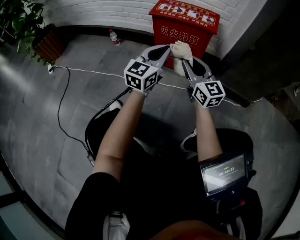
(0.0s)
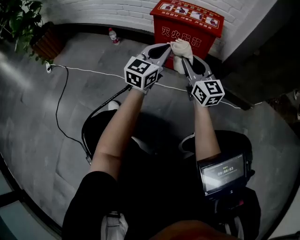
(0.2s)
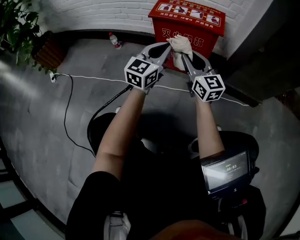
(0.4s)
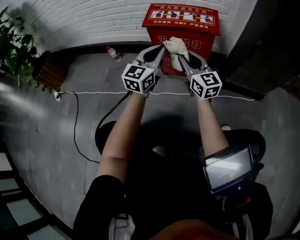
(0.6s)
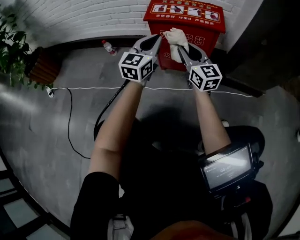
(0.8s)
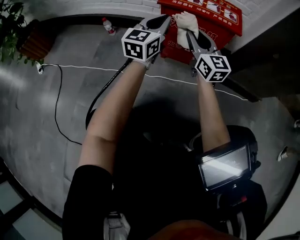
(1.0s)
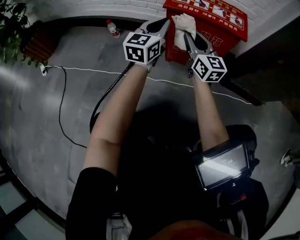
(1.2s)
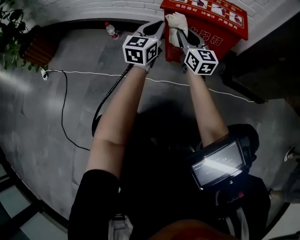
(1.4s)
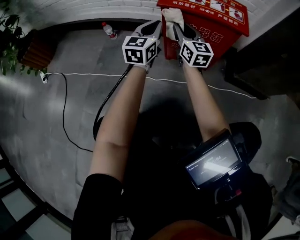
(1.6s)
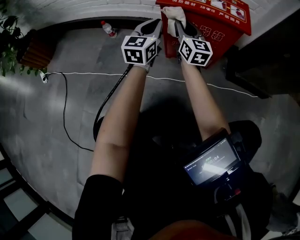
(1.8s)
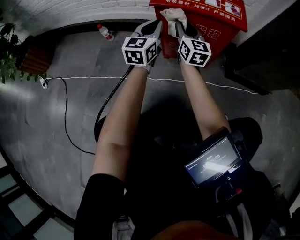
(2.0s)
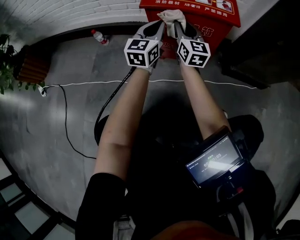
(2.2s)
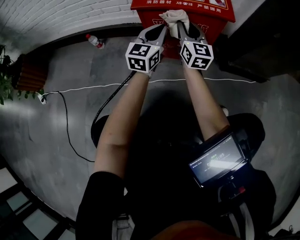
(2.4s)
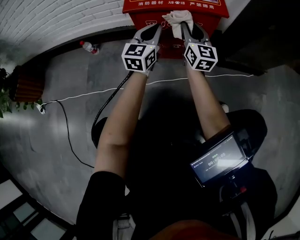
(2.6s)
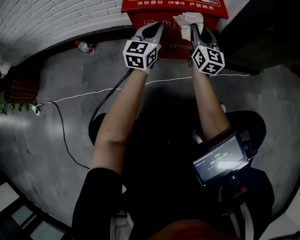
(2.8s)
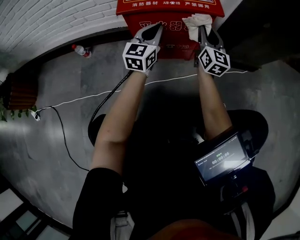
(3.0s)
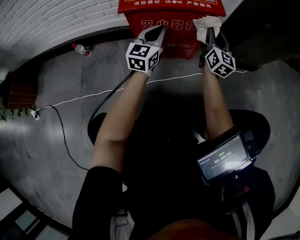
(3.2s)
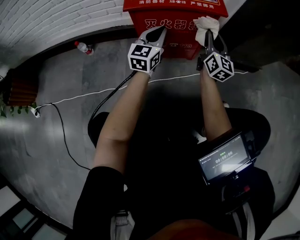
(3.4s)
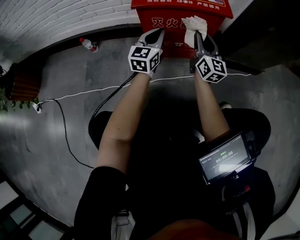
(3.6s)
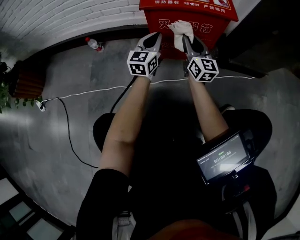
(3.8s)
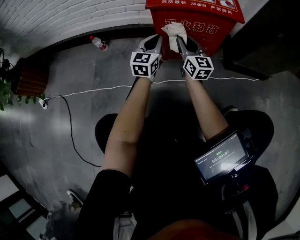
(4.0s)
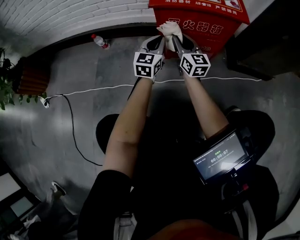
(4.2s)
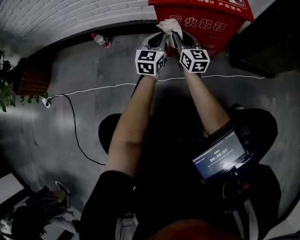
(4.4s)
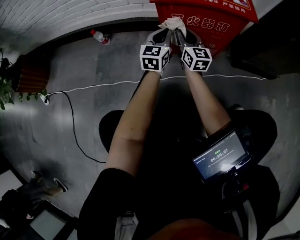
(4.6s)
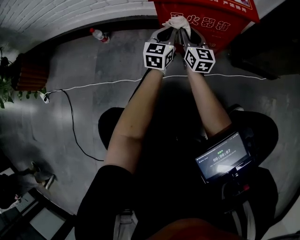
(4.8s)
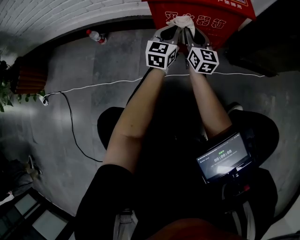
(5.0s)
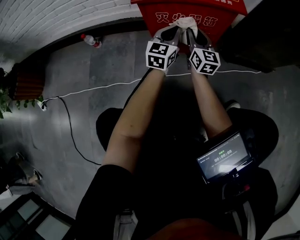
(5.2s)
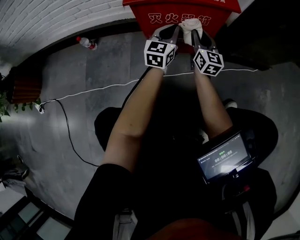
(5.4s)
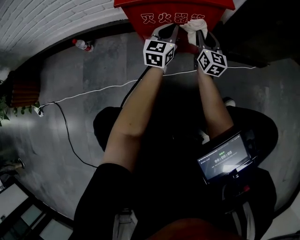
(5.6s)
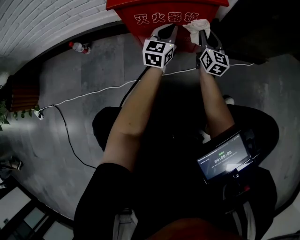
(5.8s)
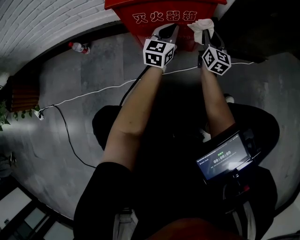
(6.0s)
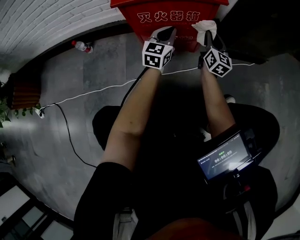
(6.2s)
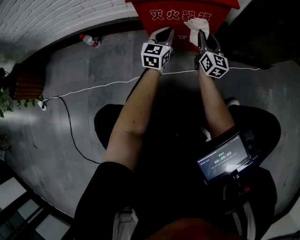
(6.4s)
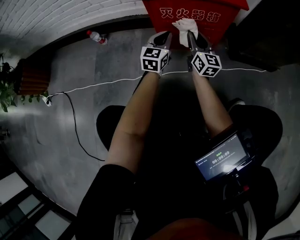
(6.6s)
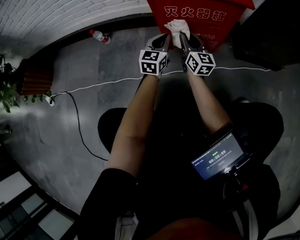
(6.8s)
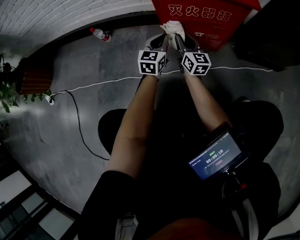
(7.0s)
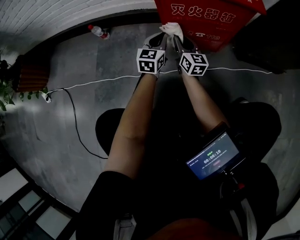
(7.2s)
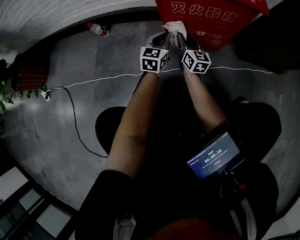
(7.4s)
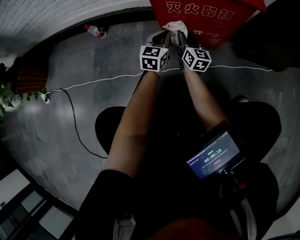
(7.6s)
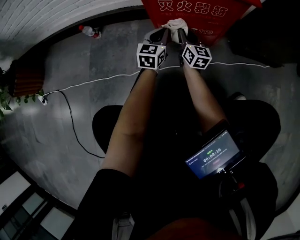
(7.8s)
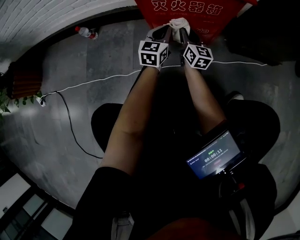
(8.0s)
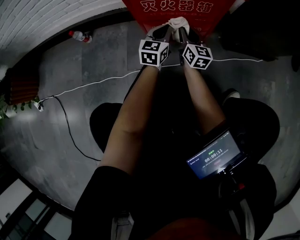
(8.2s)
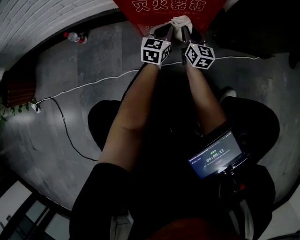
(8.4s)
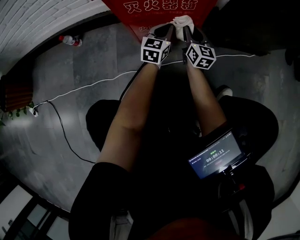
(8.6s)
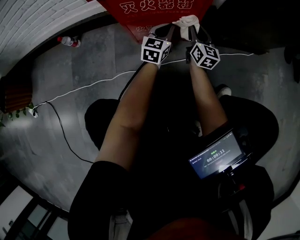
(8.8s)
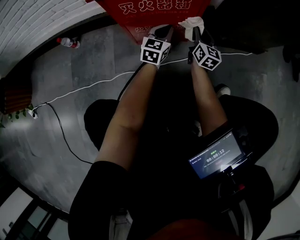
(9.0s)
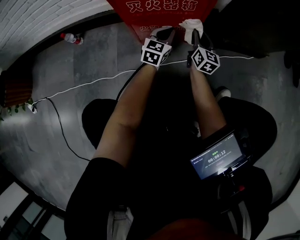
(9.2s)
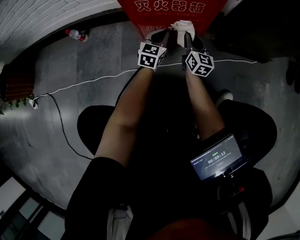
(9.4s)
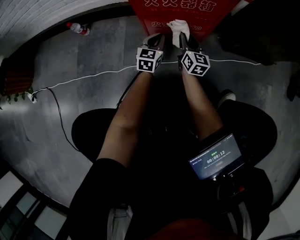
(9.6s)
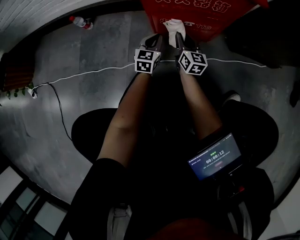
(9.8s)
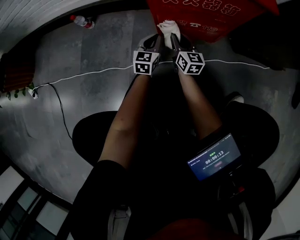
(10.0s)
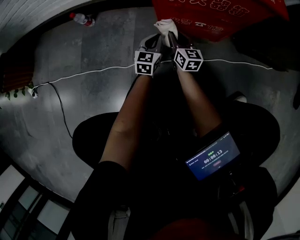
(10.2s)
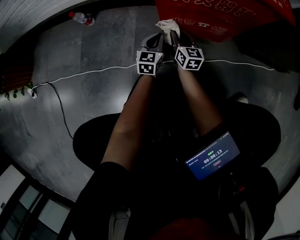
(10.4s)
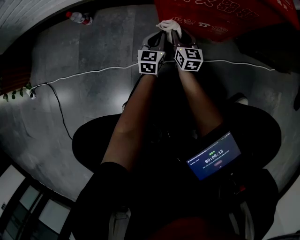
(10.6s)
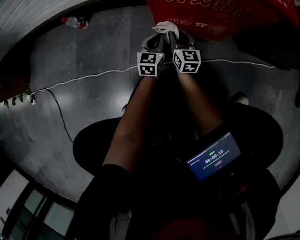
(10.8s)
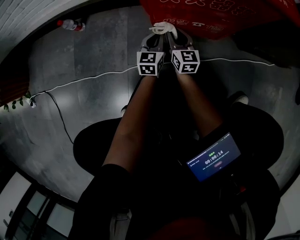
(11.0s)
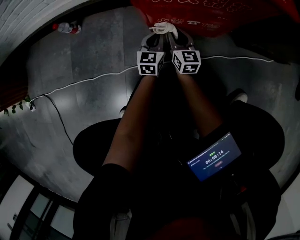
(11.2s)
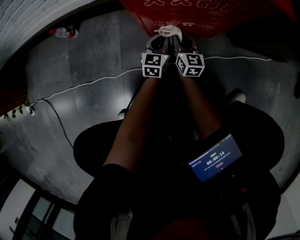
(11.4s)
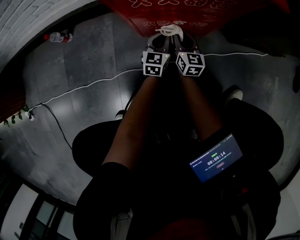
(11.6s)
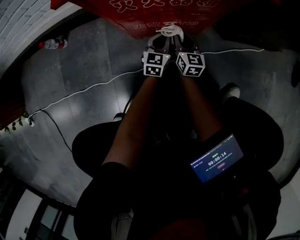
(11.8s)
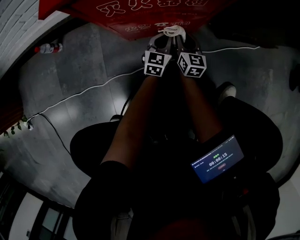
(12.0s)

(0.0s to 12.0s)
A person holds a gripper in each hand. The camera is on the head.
0.0s - 1.6s: The left gripper travels forward, to the left and downward by approximately 30 cm; the right gripper heads forward and to the left, covering about 30 cm.
1.6s - 3.0s: The right gripper shifts by about 25 cm, and rotates roughly 30 degrees, while the left gripper changes place by approximately 15 cm, and turns by approximately 20 degrees.
3.0s - 4.4s: The left gripper goes about 15 cm to the left and downward; the right gripper is displaced to the left and downward by approximately 25 cm, and swivels some 20 degrees.
4.4s - 6.0s: The right gripper shifts approximately 25 cm to the right, and rotates approximately 30 degrees; the left gripper travels to the right by approximately 15 cm.
6.0s - 7.6s: The left gripper shifts some 20 cm to the left and downward. The right gripper travels to the left by some 25 cm, and rotates some 20 degrees.
7.6s - 9.0s: Both grippers travel together to the right, roughly 20 cm.
9.0s - 10.4s: The two grippers go approximately 25 cm to the left and downward. The right gripper changes its angle by some 20 degrees.
10.4s - 12.0s: The grippers both shift to the right by approximately 20 cm.

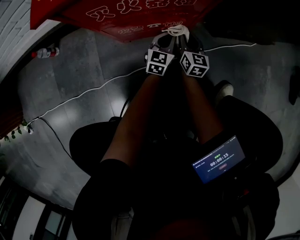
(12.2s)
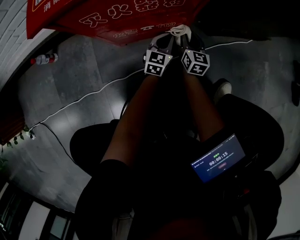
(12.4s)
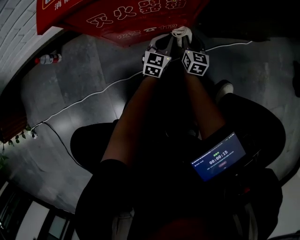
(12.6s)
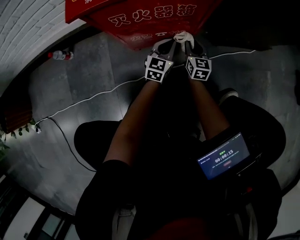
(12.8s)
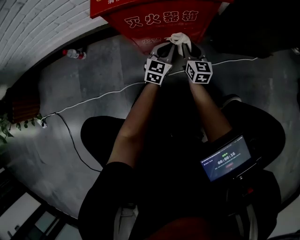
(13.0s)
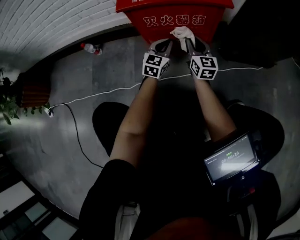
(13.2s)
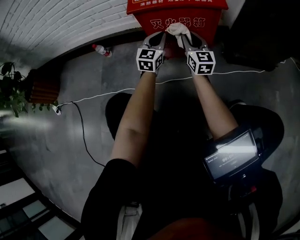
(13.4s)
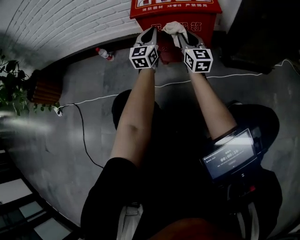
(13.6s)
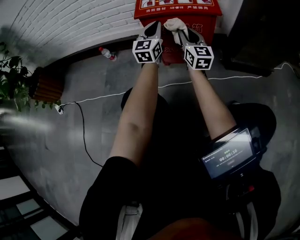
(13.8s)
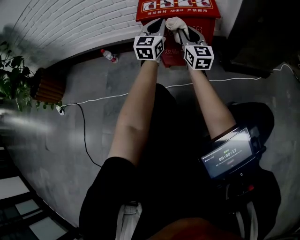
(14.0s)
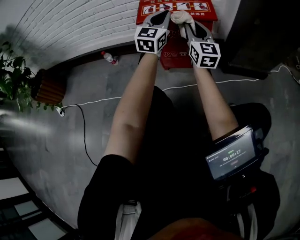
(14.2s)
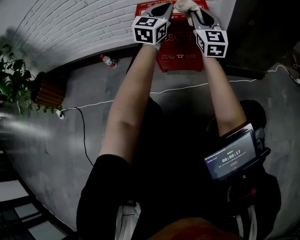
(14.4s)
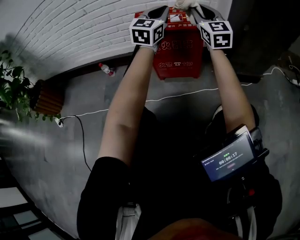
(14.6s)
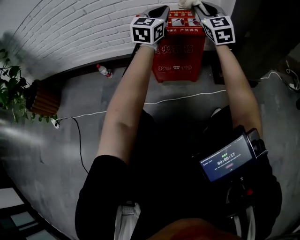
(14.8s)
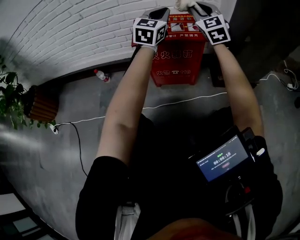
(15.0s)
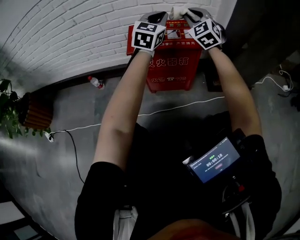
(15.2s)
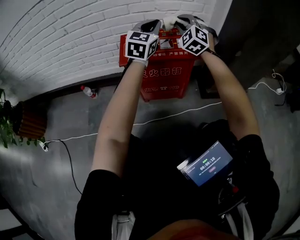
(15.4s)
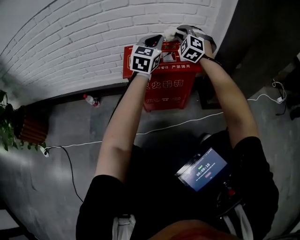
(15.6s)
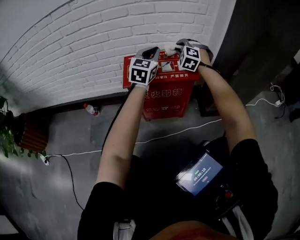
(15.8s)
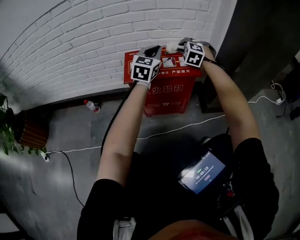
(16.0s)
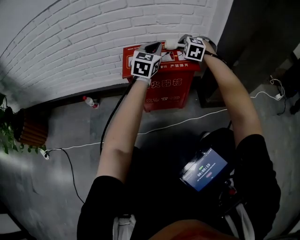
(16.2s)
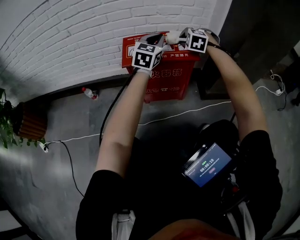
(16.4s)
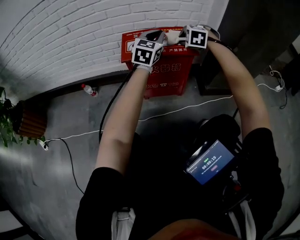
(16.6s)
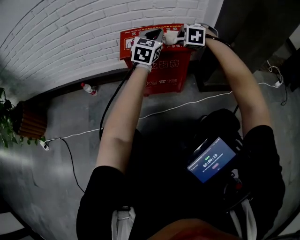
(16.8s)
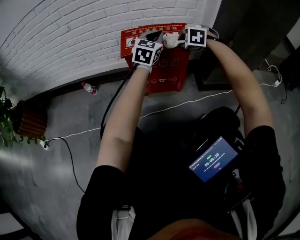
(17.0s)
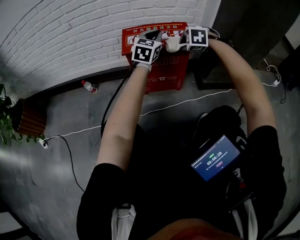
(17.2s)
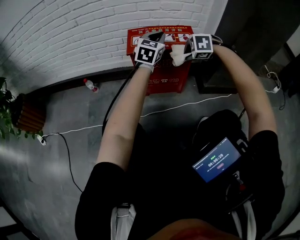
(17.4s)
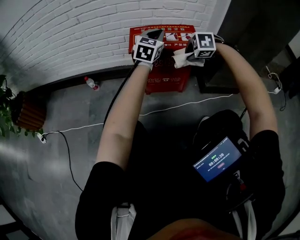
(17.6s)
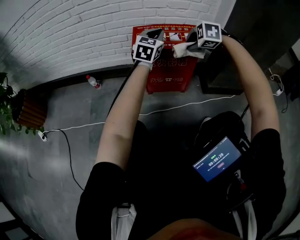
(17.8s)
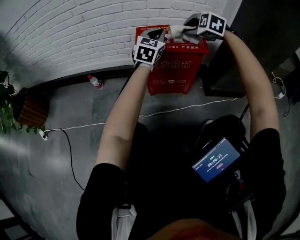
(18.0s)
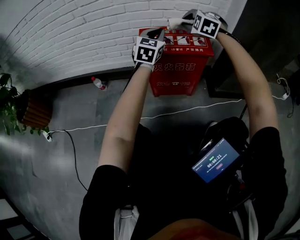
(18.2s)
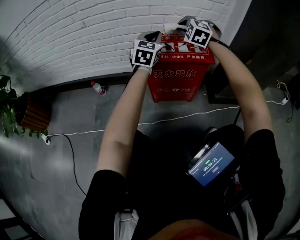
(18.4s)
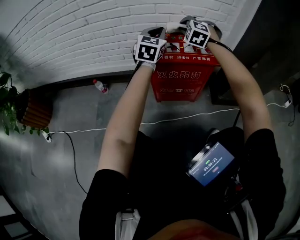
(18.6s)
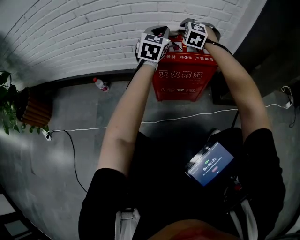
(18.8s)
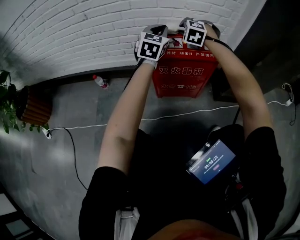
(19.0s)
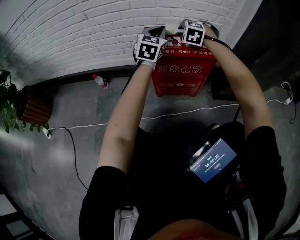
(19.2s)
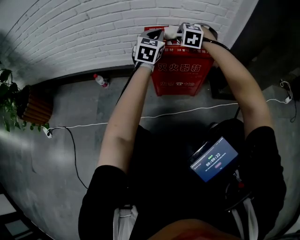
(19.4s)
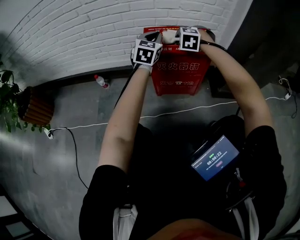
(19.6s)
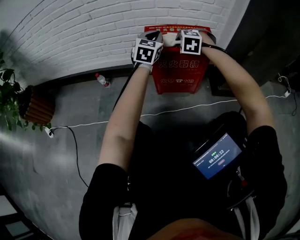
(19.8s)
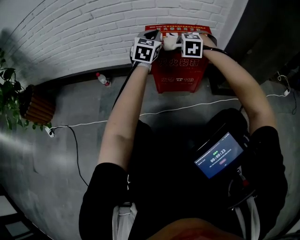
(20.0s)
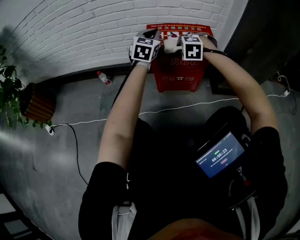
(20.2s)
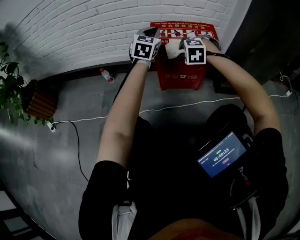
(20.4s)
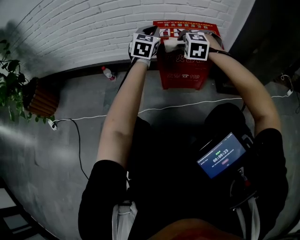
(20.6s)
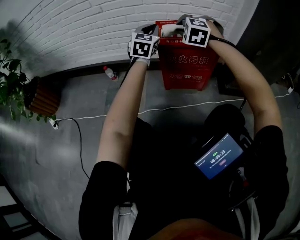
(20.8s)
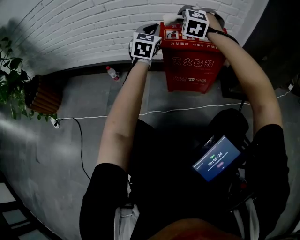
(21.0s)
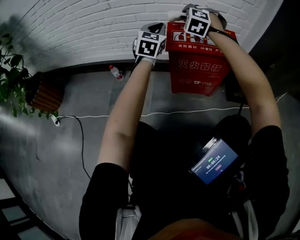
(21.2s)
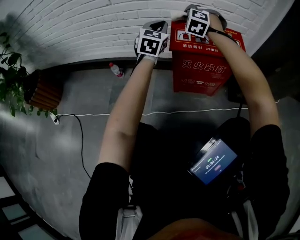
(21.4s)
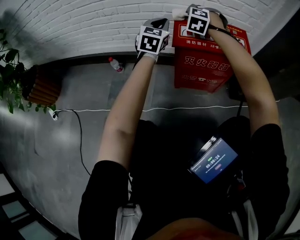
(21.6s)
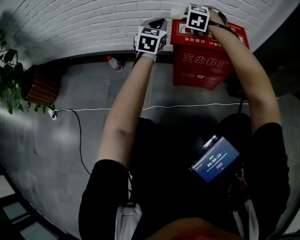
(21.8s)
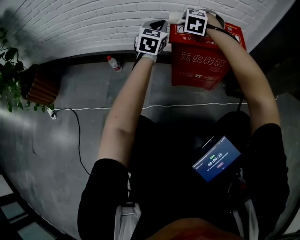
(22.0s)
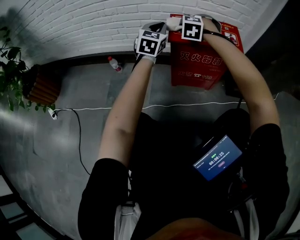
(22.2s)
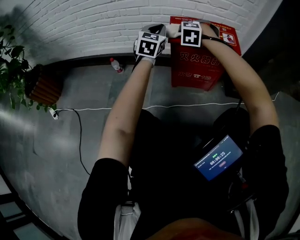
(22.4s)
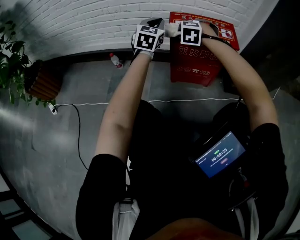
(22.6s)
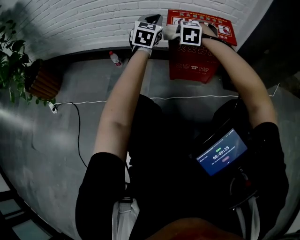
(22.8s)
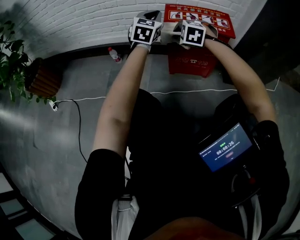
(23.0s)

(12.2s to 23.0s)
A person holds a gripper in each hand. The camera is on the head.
12.2s - 13.8s: The left gripper goes about 40 cm upward and to the left, and turns by roughly 30 degrees, while the right gripper travels upward by roughly 35 cm, and rotates roughly 30 degrees.
13.8s - 15.2s: The right gripper moves upward and forward, approximately 25 cm, and rolls counterclockwise, seen from behind, by approximately 50 degrees. Meanwhile the left gripper shifts about 20 cm upward, forward and to the right, and rotates roughly 20 degrees.
15.2s - 16.8s: The left gripper shifts approximately 5 cm downward; the right gripper shifts roughly 15 cm downward, and tilts its fingers approximately 50 degrees downward.
16.8s - 18.4s: The right gripper changes place by about 15 cm, and changes its angle by roughly 20 degrees. The left gripper ends up approximately 10 cm from where it was.
18.4s - 20.0s: The left gripper ends up some 5 cm from where it was. The right gripper shifts some 15 cm backward and downward, and swivels some 20 degrees.
20.0s - 21.4s: The right gripper heads forward and to the left, covering approximately 20 cm, and turns by some 20 degrees. Meanwhile the left gripper shifts approximately 10 cm to the left and forward.
21.4s - 23.0s: The right gripper travels backward by about 20 cm, and changes its angle by about 30 degrees. The left gripper is displaced backward by roughly 10 cm.
